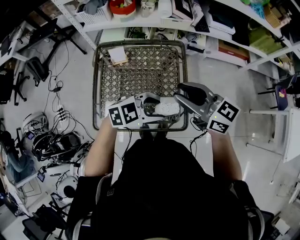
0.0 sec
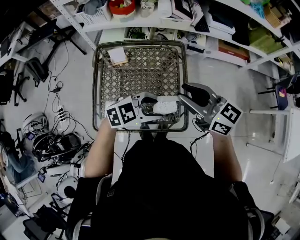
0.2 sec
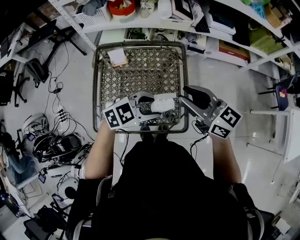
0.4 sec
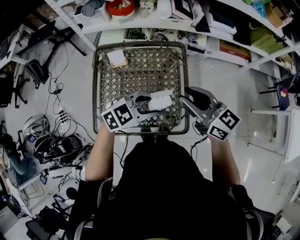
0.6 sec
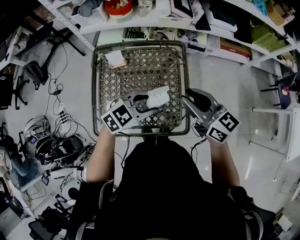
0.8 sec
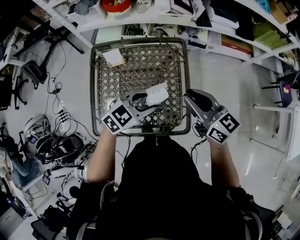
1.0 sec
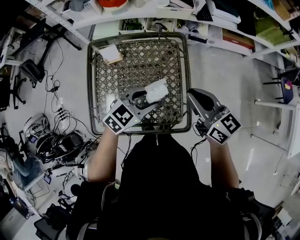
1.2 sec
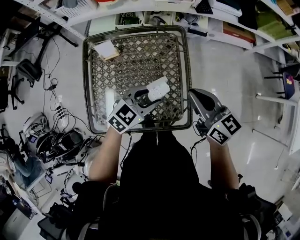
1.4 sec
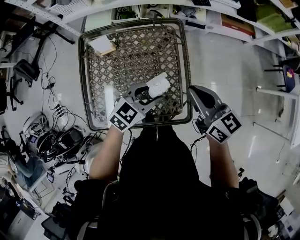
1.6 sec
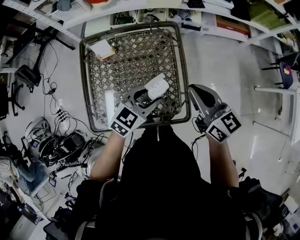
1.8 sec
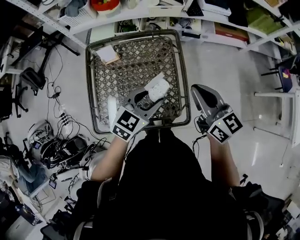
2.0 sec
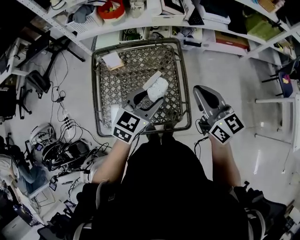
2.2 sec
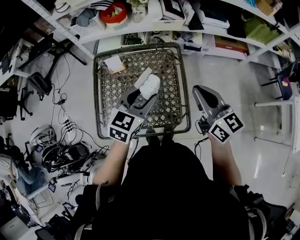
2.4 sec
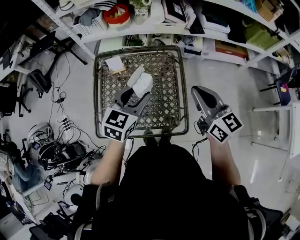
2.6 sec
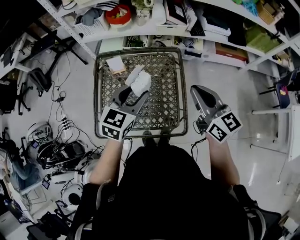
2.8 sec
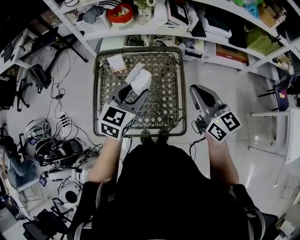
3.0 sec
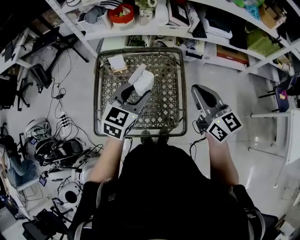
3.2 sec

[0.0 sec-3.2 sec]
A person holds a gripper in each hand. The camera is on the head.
0.0 sec to 1.6 sec: The grippers both shift downward by some 10 cm. The right gripper swivels roughly 20 degrees, and closes up. Meanwhile the left gripper turns by roughly 30 degrees.
1.6 sec to 3.2 sec: The two grippers go some 15 cm upward. The left gripper swivels some 30 degrees.

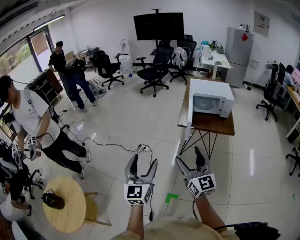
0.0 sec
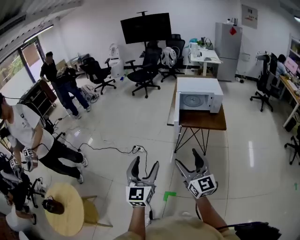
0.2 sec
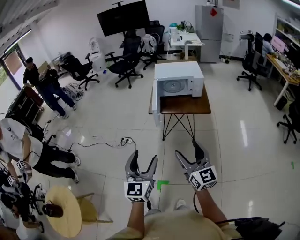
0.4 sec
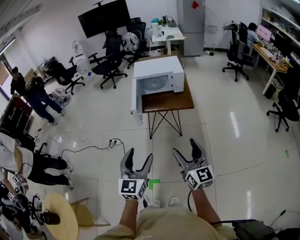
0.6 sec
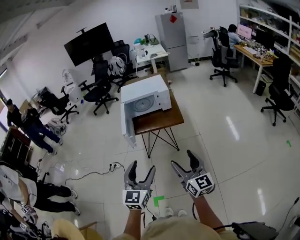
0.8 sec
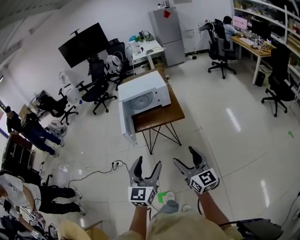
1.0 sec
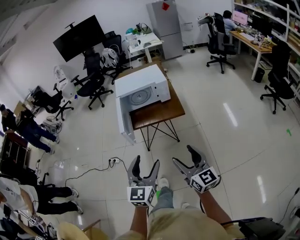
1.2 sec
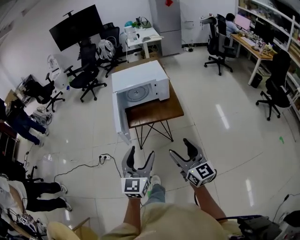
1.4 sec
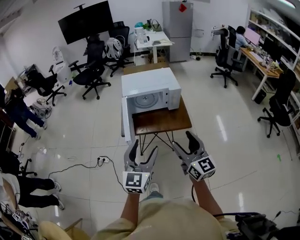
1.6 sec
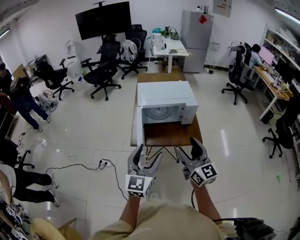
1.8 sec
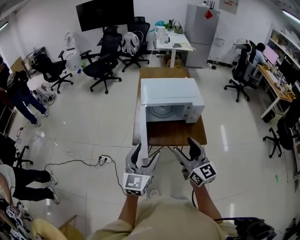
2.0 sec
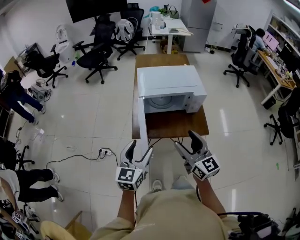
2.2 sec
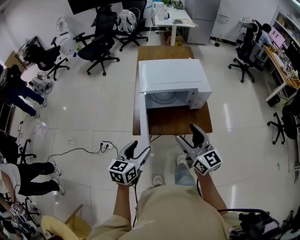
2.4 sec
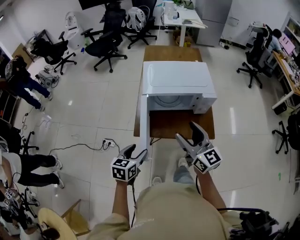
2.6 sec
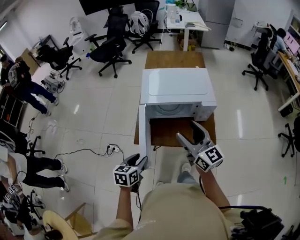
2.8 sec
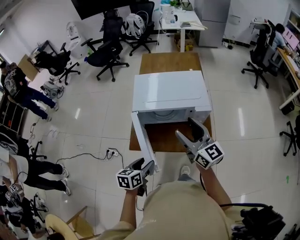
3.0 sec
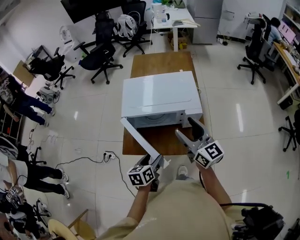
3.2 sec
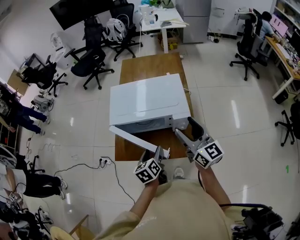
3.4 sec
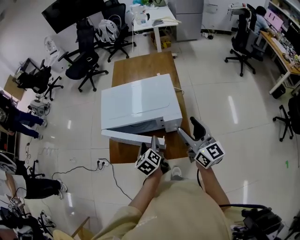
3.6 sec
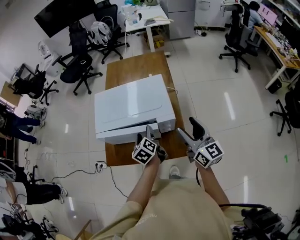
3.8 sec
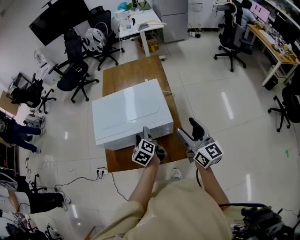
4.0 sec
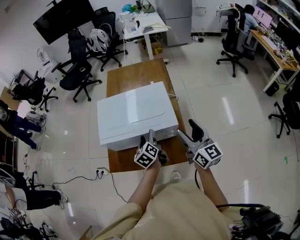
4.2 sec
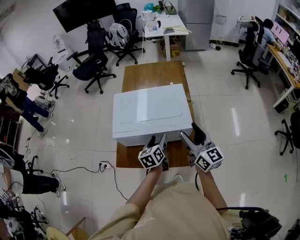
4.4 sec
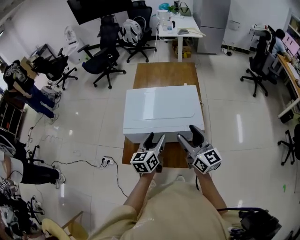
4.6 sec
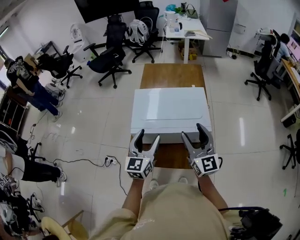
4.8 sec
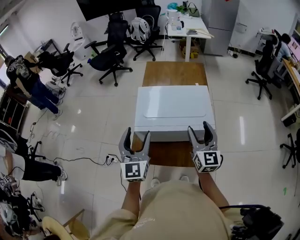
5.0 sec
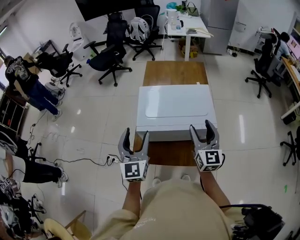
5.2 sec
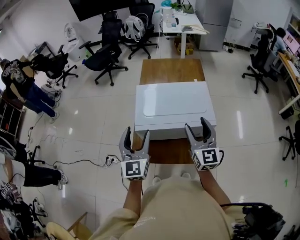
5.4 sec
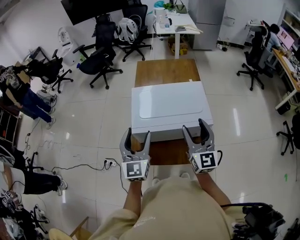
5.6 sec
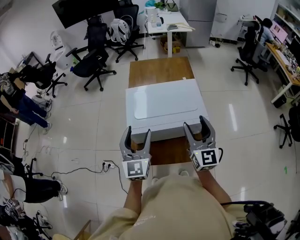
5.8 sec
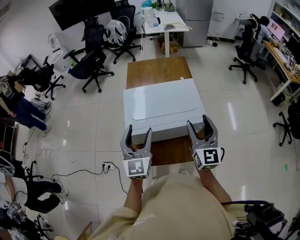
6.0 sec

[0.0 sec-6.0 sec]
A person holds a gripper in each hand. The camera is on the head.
0.0 sec to 1.6 sec: The left gripper goes forward and backward, roughly 35 cm each way, reversing 2 times, and turns by roughly 20 degrees. Meanwhile the right gripper swings forward and backward, about 30 cm each way, with 2 reversals.
1.6 sec to 3.0 sec: The right gripper is displaced forward by roughly 40 cm. The left gripper heads forward and downward, covering about 50 cm, and tilts its fingers approximately 40 degrees downward.
3.0 sec to 4.4 sec: The right gripper heads to the right and forward, covering approximately 20 cm, while the left gripper is displaced to the right and forward by about 30 cm.
4.4 sec to 6.0 sec: The left gripper goes roughly 30 cm upward and to the left, and turns by roughly 40 degrees. Meanwhile the right gripper goes some 10 cm to the left and upward, and turns by some 30 degrees.

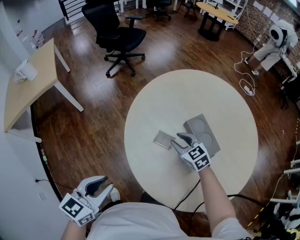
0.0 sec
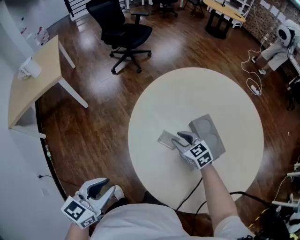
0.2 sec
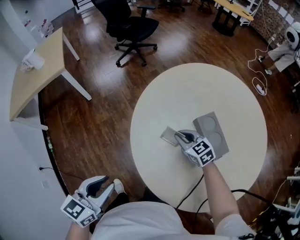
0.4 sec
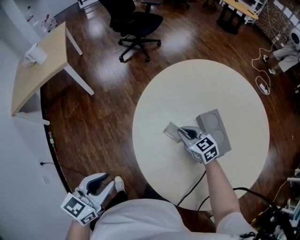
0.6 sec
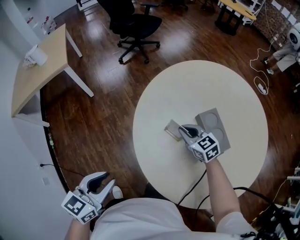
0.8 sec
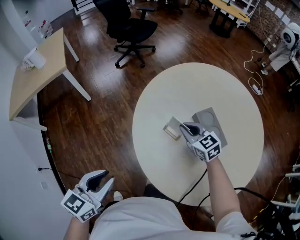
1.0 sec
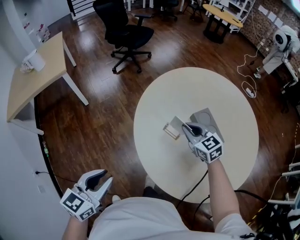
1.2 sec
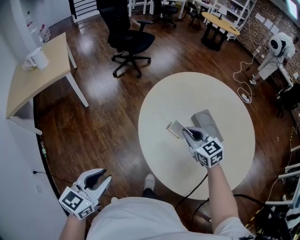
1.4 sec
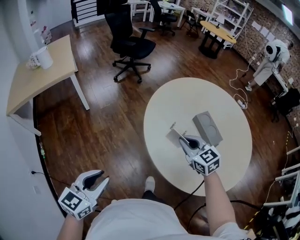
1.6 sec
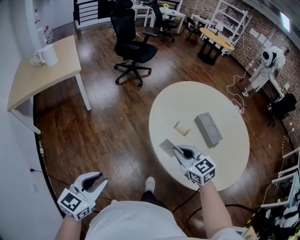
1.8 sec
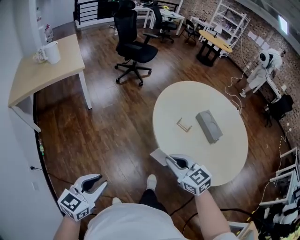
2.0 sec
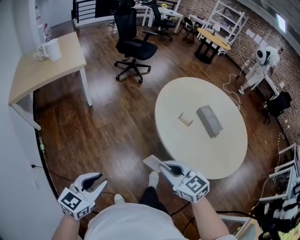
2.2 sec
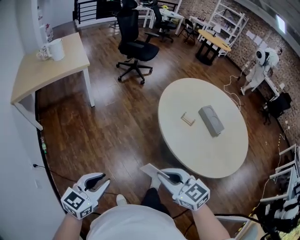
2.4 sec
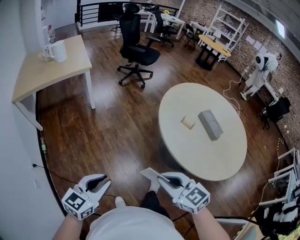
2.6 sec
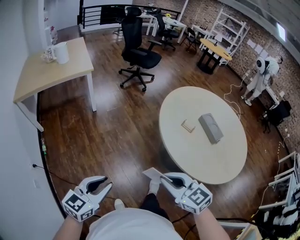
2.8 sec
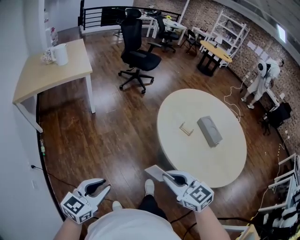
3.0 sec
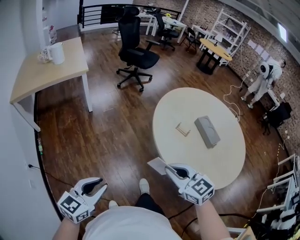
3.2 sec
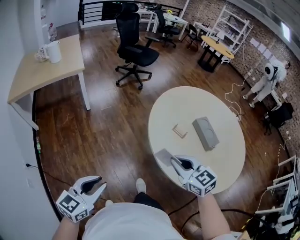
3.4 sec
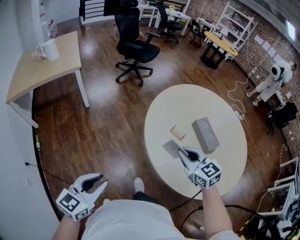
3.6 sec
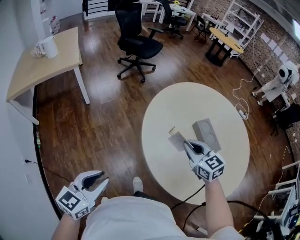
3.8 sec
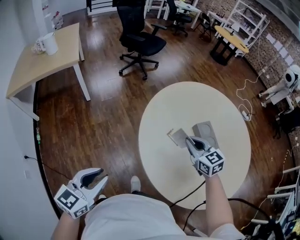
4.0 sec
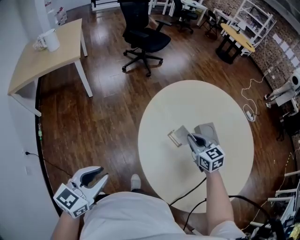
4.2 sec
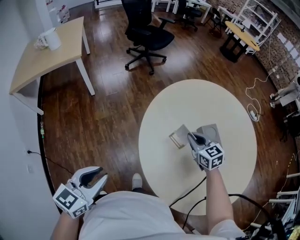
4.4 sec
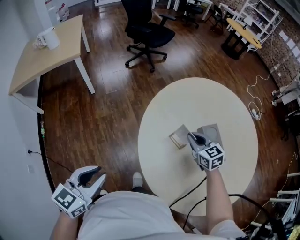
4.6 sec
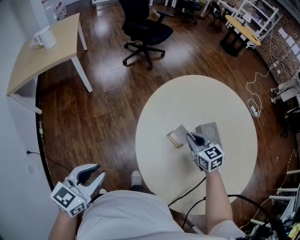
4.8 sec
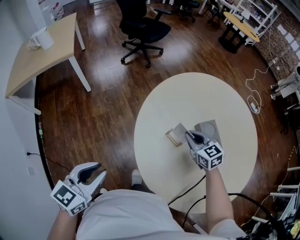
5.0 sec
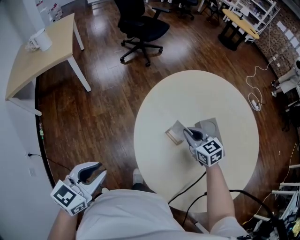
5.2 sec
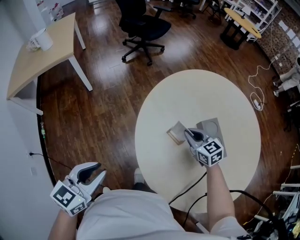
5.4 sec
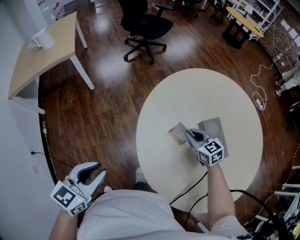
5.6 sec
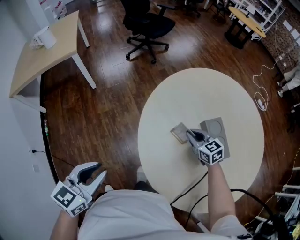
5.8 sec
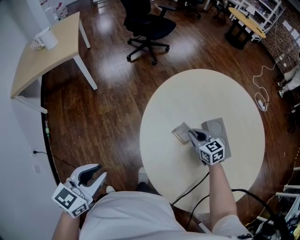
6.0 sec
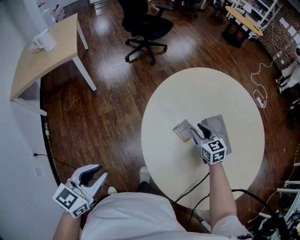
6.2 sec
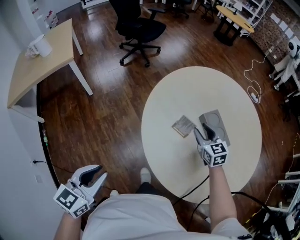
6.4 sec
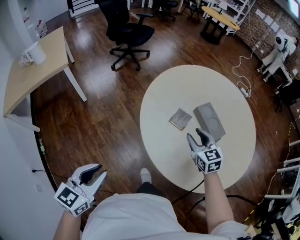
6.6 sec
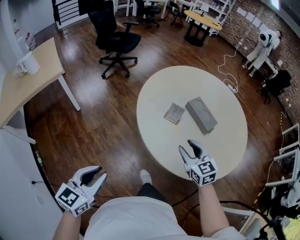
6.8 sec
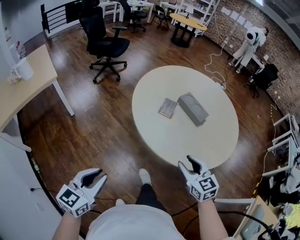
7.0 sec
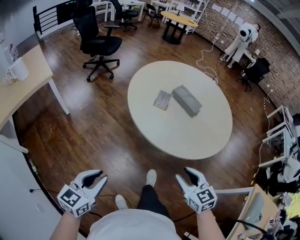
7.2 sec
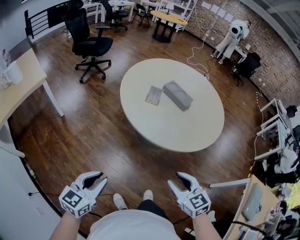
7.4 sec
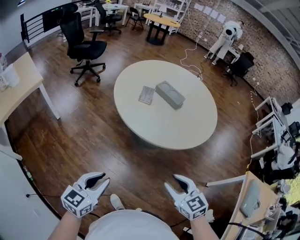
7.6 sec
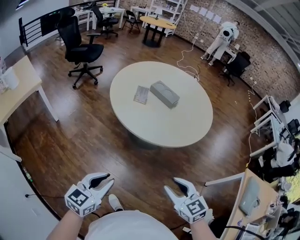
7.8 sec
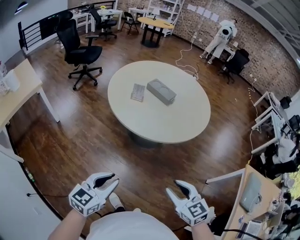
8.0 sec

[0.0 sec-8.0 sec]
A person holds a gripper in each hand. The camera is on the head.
0.0 sec to 1.6 sec: The left gripper goes about 15 cm to the left and backward. The right gripper heads upward, backward and to the left, covering about 20 cm, and closes its fingers.
1.6 sec to 3.2 sec: The left gripper moves backward and to the left, approximately 15 cm. The right gripper is displaced backward and to the left by roughly 25 cm.
3.2 sec to 4.8 sec: The left gripper moves forward and to the right, some 25 cm. The right gripper goes roughly 40 cm forward, to the right and downward.
4.8 sec to 6.4 sec: The right gripper opens up.
6.4 sec to 8.0 sec: The left gripper goes some 30 cm backward and to the right, and changes its angle by approximately 40 degrees. The right gripper is displaced backward by roughly 60 cm.

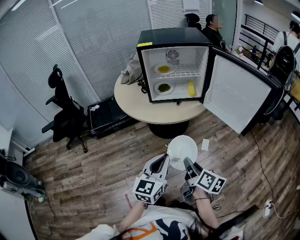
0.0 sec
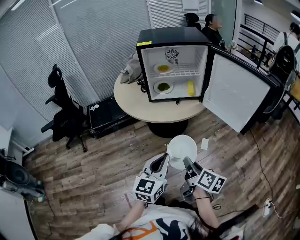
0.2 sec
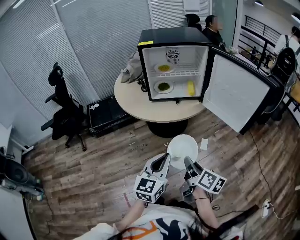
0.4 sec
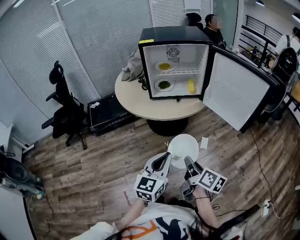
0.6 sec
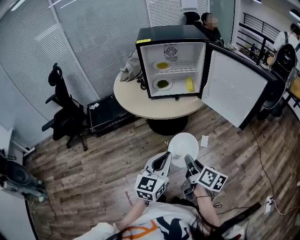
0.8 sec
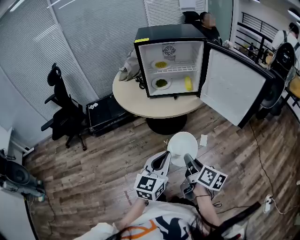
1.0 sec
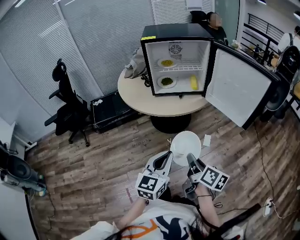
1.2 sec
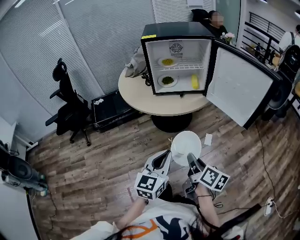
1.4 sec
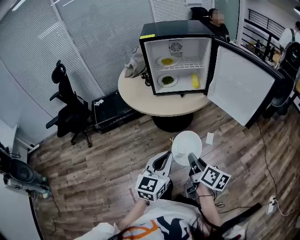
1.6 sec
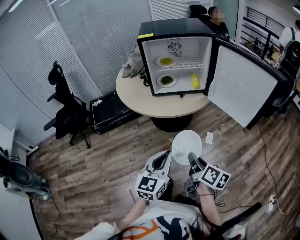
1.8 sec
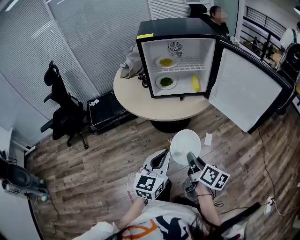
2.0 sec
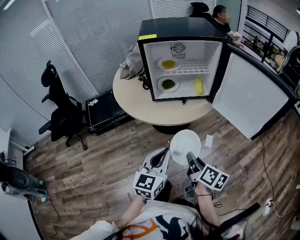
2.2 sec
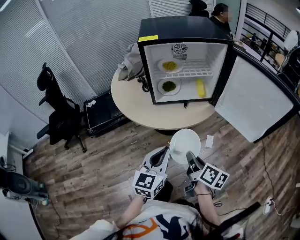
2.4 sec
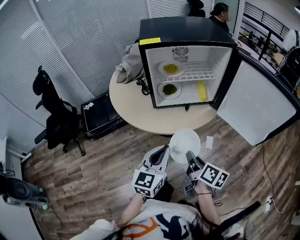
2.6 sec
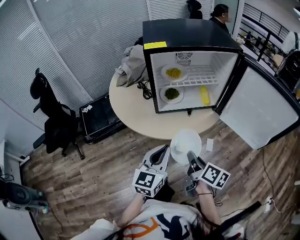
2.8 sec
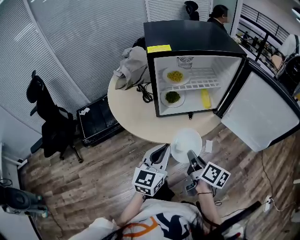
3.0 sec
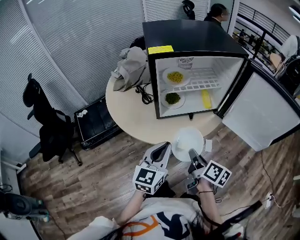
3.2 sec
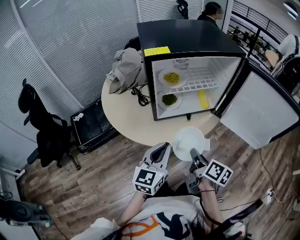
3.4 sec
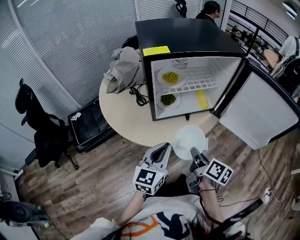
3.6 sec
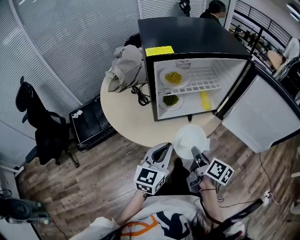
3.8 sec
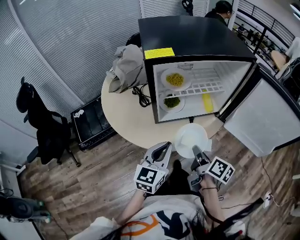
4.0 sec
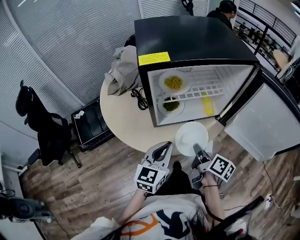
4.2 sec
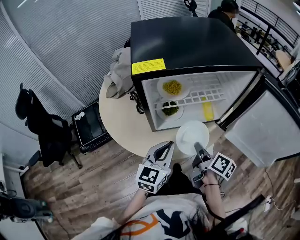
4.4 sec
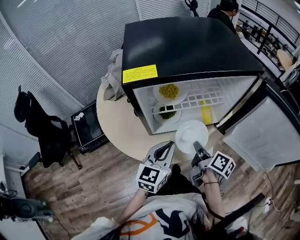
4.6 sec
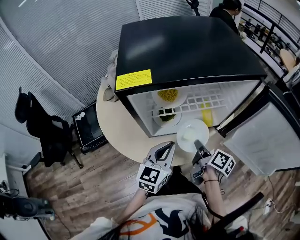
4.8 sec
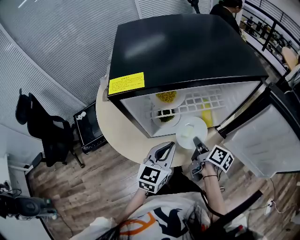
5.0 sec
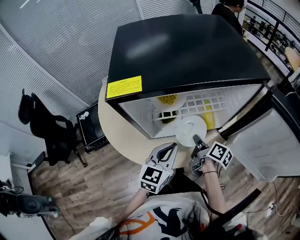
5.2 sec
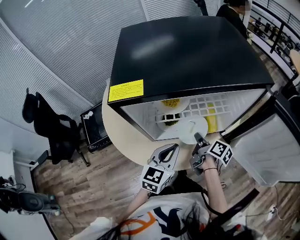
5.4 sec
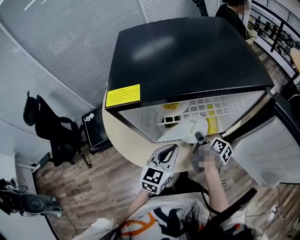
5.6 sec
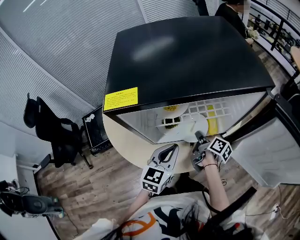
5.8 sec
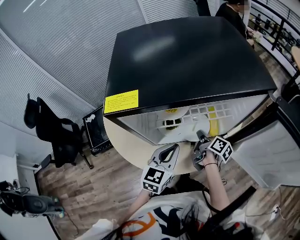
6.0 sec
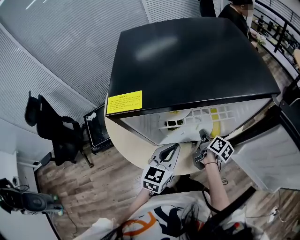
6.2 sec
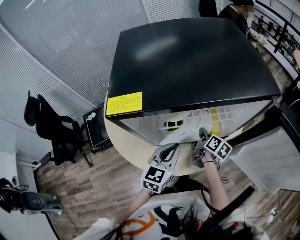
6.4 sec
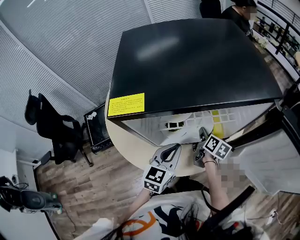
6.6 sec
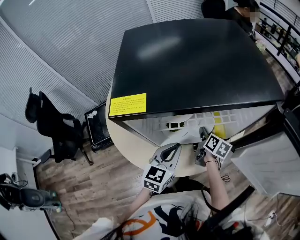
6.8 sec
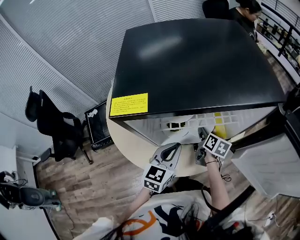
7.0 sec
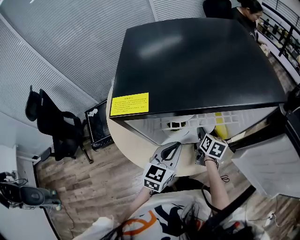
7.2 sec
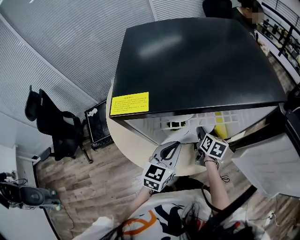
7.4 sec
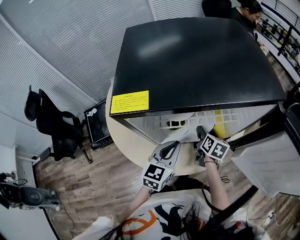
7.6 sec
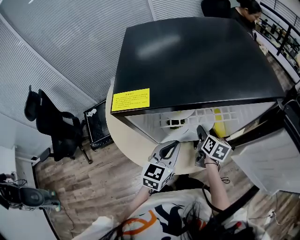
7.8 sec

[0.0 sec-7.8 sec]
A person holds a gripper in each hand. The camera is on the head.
0.0 sec to 1.6 sec: The grippers move only a little.
1.6 sec to 3.2 sec: Both grippers move forward and to the left, about 30 cm.
3.2 sec to 4.6 sec: Both grippers move forward, approximately 15 cm.
4.6 sec to 6.2 sec: The right gripper shifts about 15 cm forward and downward. The left gripper travels forward by approximately 5 cm.
6.2 sec to 7.8 sec: The right gripper swivels approximately 30 degrees, and opens up.
